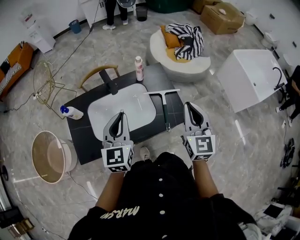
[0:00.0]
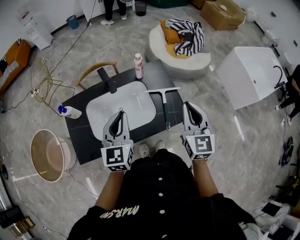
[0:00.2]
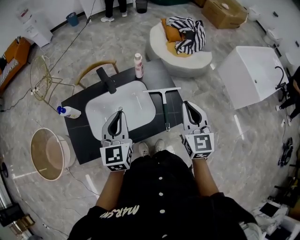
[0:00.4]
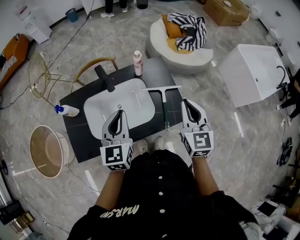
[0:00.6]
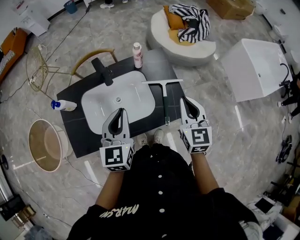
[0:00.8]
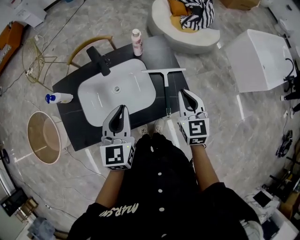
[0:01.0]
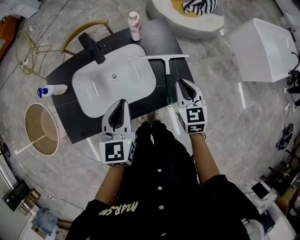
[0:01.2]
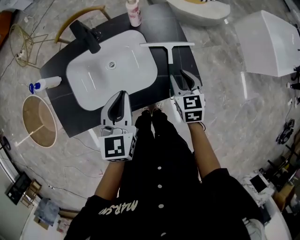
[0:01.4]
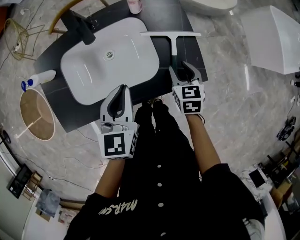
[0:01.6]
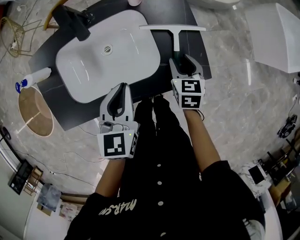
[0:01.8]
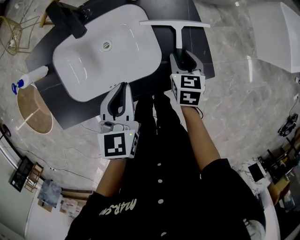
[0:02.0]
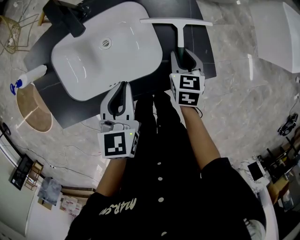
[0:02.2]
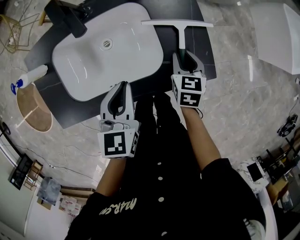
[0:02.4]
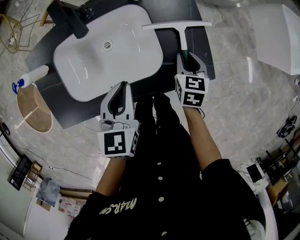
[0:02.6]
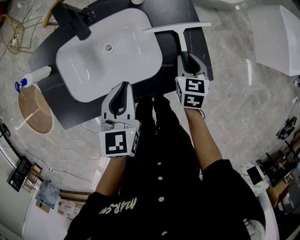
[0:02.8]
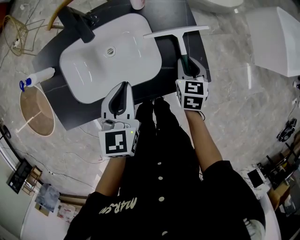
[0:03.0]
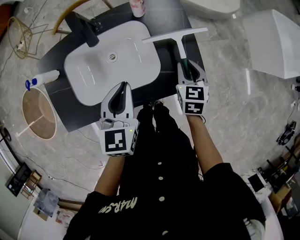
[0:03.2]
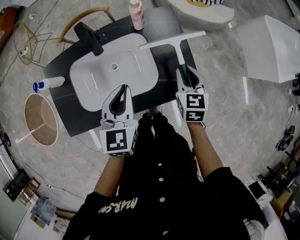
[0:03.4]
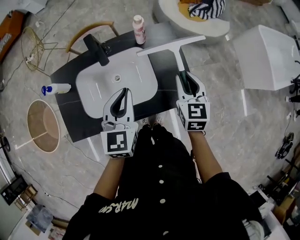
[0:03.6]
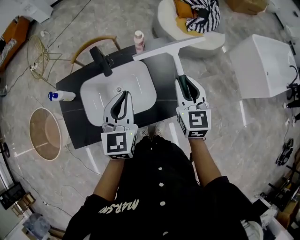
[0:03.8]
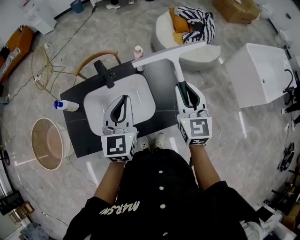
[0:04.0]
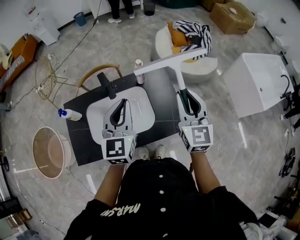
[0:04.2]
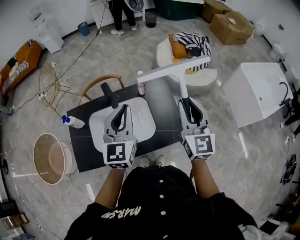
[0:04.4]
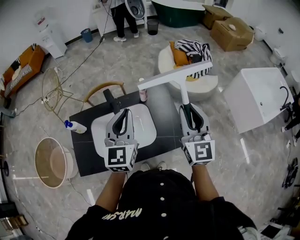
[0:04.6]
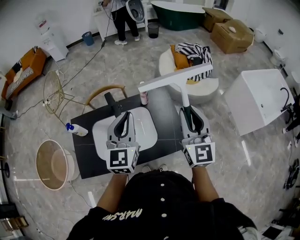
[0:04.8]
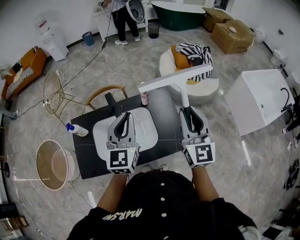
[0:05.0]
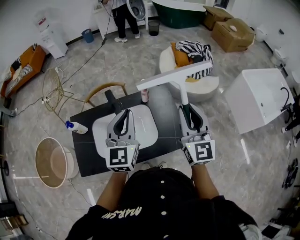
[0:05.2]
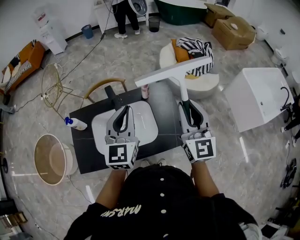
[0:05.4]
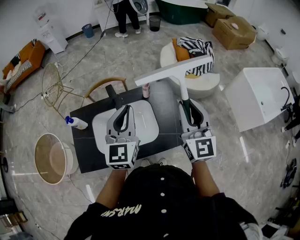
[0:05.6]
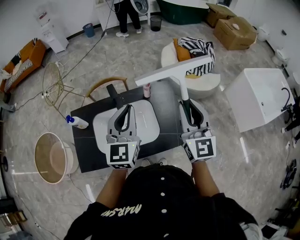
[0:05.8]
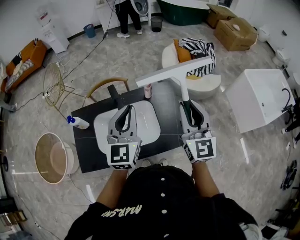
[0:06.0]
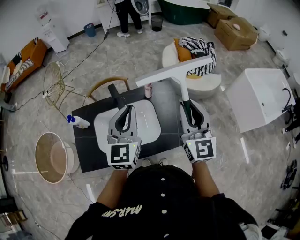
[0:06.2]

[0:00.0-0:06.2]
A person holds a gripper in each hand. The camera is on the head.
0:00.0 to 0:01.6: The right gripper shifts about 35 cm downward, points its fingers roughly 40 degrees further downward, and opens up. The left gripper shifts some 15 cm downward.
0:01.6 to 0:03.2: The grippers make only small movements.
0:03.2 to 0:04.6: The left gripper goes approximately 25 cm upward, and changes its angle by about 30 degrees. The right gripper heads upward, covering roughly 35 cm, and angles its fingers upward, by approximately 50 degrees.
0:04.6 to 0:06.2: The grippers make only small movements.

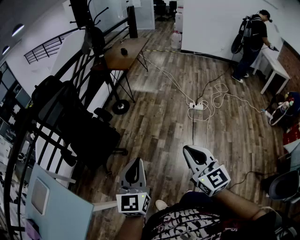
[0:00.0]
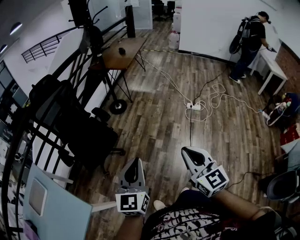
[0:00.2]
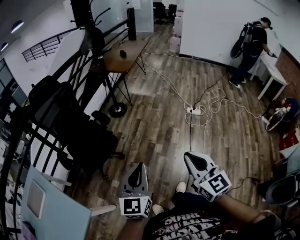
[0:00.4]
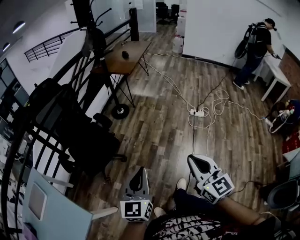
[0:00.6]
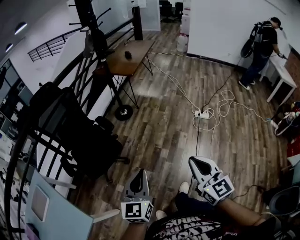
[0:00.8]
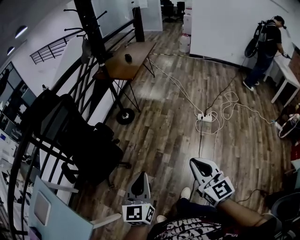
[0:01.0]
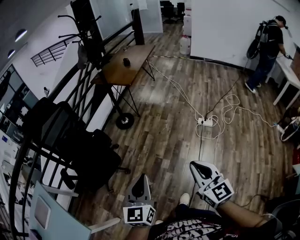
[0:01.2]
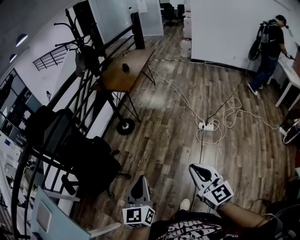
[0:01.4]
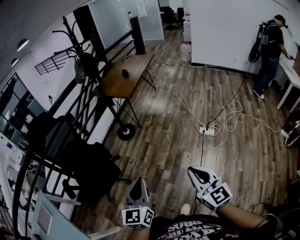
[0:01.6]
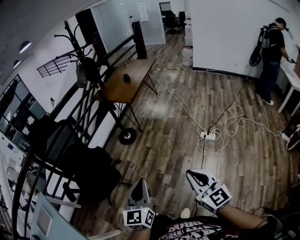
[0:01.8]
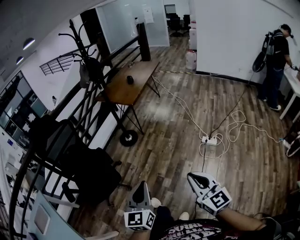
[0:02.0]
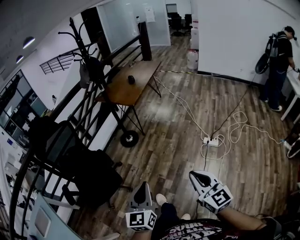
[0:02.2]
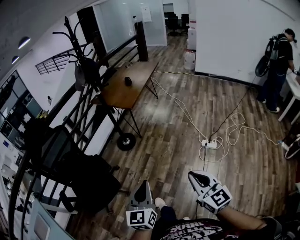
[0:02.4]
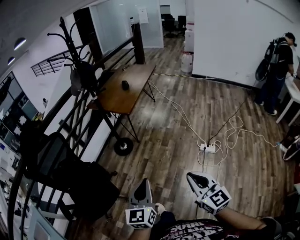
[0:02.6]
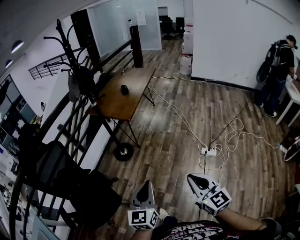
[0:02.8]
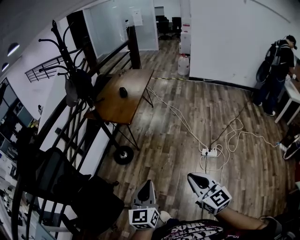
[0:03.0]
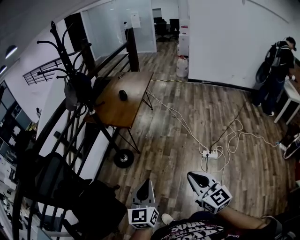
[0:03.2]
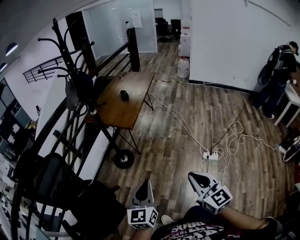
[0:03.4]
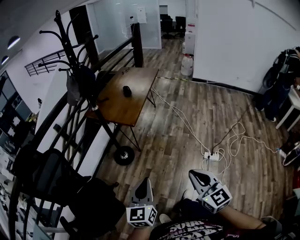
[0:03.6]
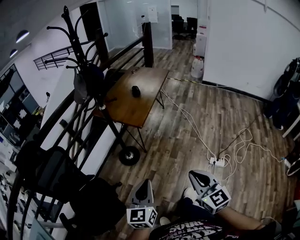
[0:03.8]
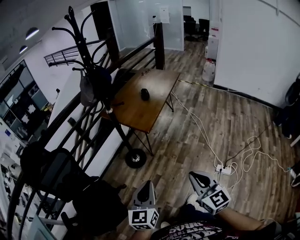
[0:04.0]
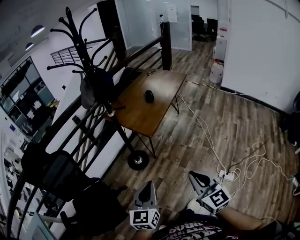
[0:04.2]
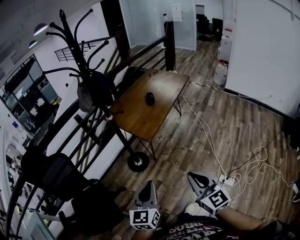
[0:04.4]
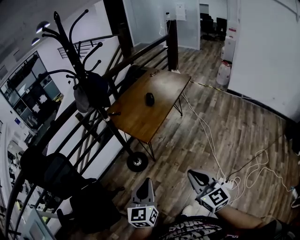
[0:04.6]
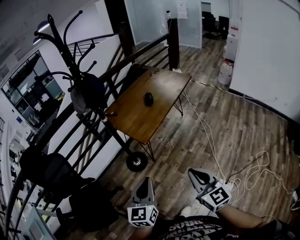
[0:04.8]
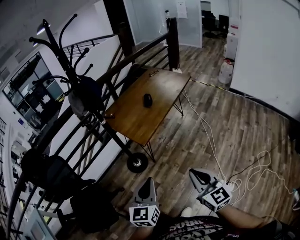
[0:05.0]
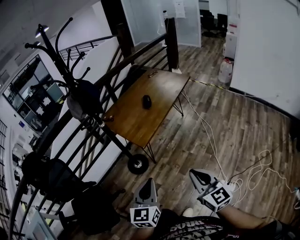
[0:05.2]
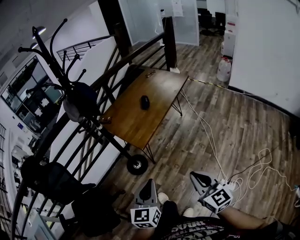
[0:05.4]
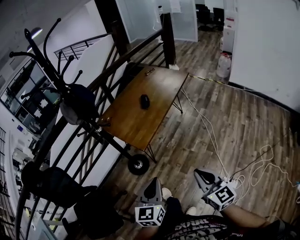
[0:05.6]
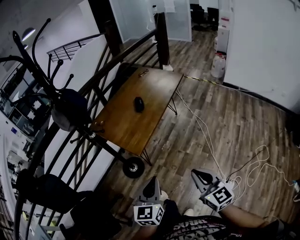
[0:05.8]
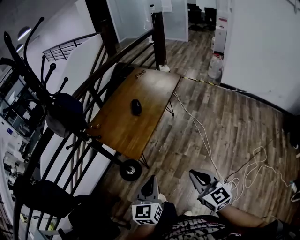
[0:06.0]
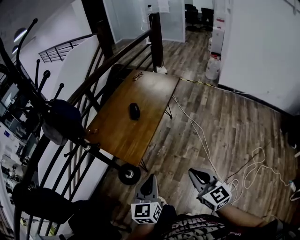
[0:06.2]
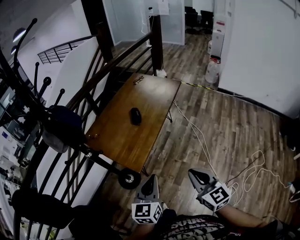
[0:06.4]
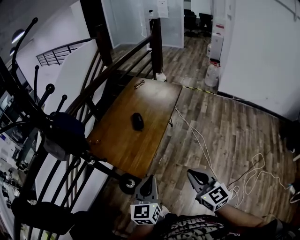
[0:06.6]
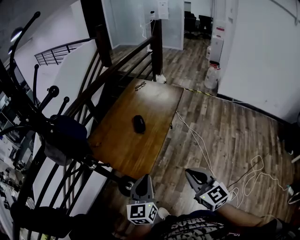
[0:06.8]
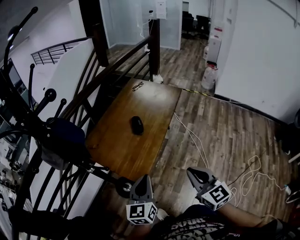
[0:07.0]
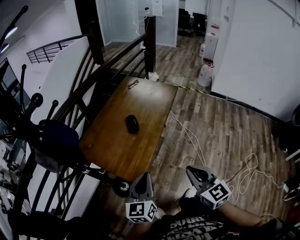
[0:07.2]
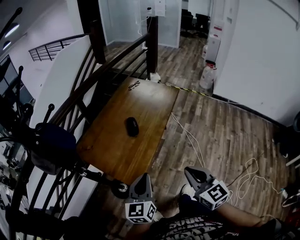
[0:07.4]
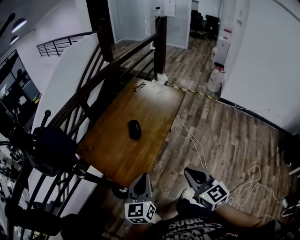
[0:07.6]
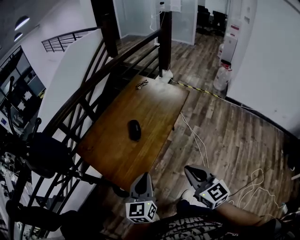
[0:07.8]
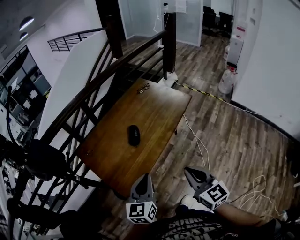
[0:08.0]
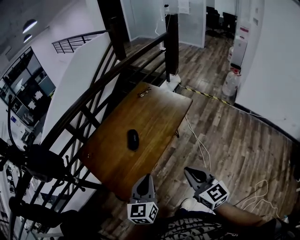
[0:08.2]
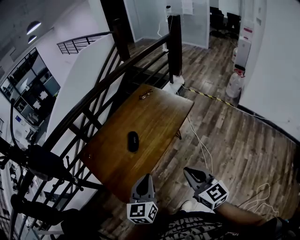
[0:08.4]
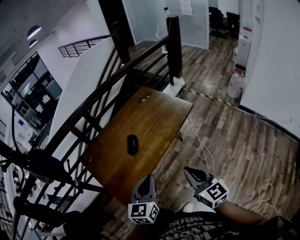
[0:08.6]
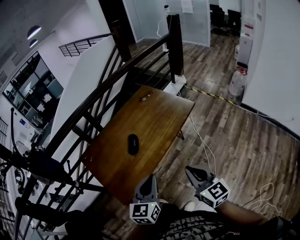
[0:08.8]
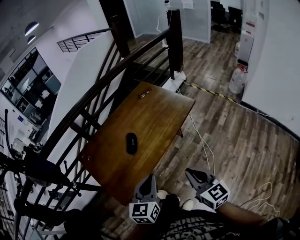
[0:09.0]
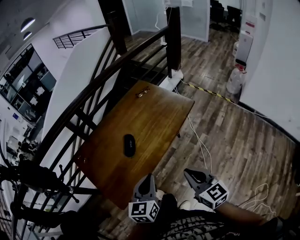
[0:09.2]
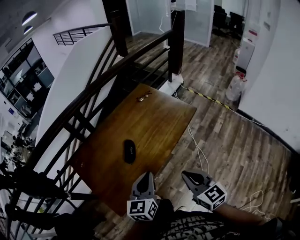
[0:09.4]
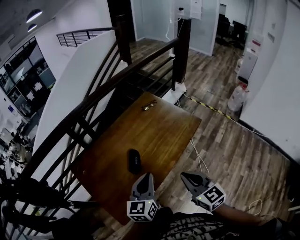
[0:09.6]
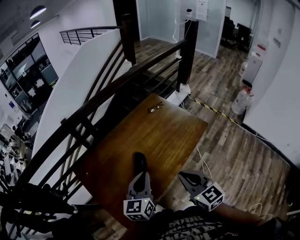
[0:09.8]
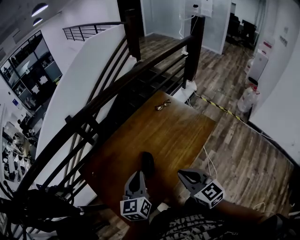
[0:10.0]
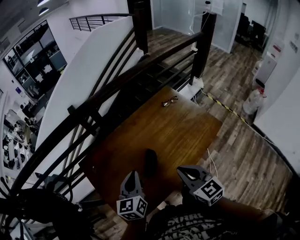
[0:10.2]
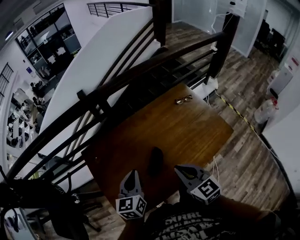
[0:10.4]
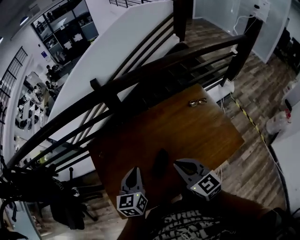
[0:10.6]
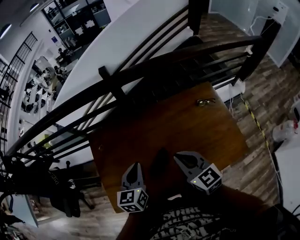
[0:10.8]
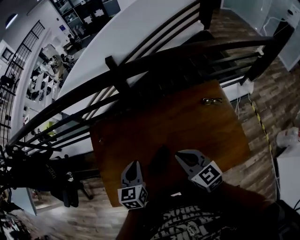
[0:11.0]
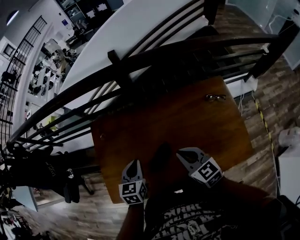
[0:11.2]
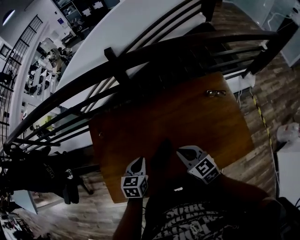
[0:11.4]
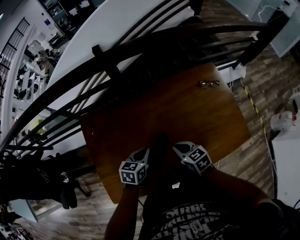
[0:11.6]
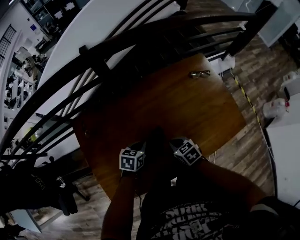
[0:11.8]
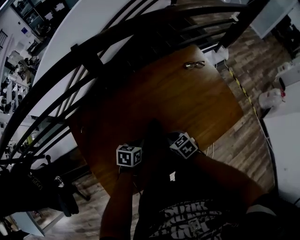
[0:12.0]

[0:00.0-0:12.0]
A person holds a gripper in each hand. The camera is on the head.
0:00.0 to 0:01.6: Both grippers travel together forward and to the right, some 30 cm.
0:01.6 to 0:03.0: The grippers both shift forward by some 30 cm.
0:03.0 to 0:04.4: The two grippers go about 25 cm forward.
0:04.4 to 0:06.0: The two grippers go some 25 cm forward and to the right.
0:06.0 to 0:07.6: Both grippers travel together forward, about 25 cm.
0:07.6 to 0:09.0: The grippers both shift to the right and forward by roughly 20 cm.
0:09.0 to 0:10.4: Both grippers travel together forward and to the left, approximately 35 cm. The right gripper changes its angle by some 30 degrees, while the left gripper rotates some 30 degrees.
0:10.4 to 0:12.0: The two grippers go roughly 25 cm downward. The left gripper swivels approximately 40 degrees, while the right gripper tilts its fingers about 30 degrees downward.

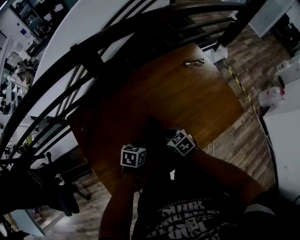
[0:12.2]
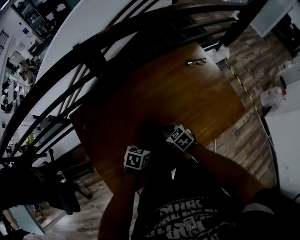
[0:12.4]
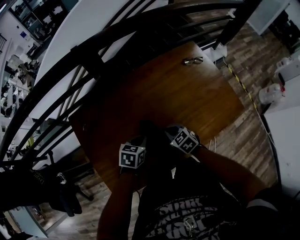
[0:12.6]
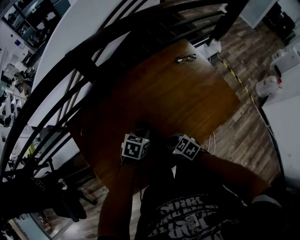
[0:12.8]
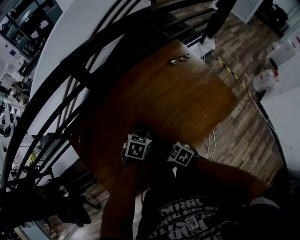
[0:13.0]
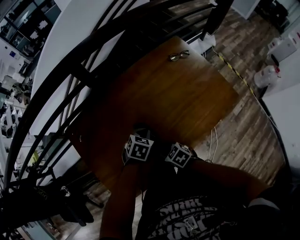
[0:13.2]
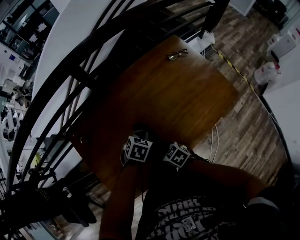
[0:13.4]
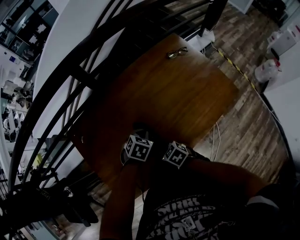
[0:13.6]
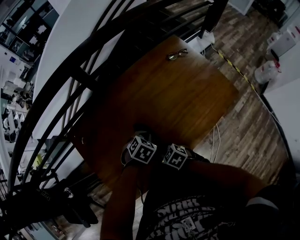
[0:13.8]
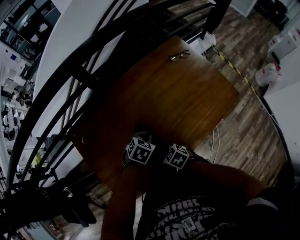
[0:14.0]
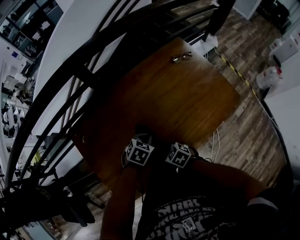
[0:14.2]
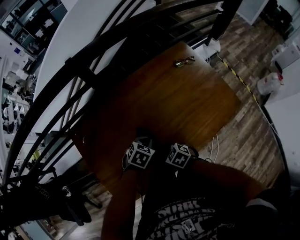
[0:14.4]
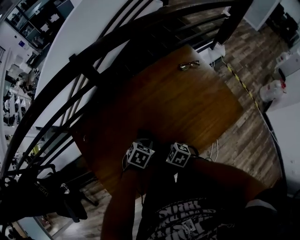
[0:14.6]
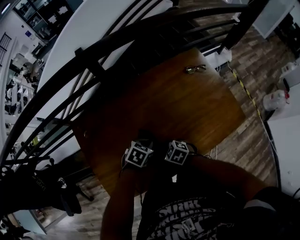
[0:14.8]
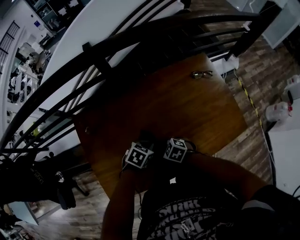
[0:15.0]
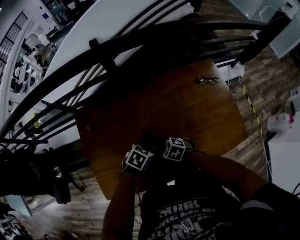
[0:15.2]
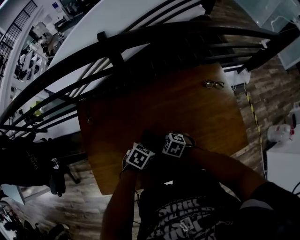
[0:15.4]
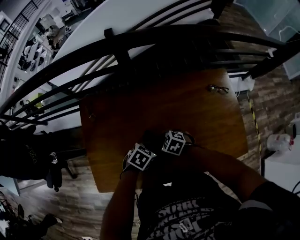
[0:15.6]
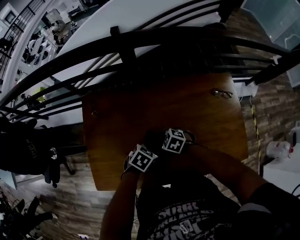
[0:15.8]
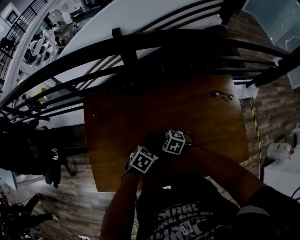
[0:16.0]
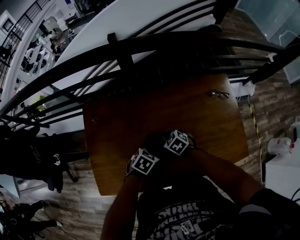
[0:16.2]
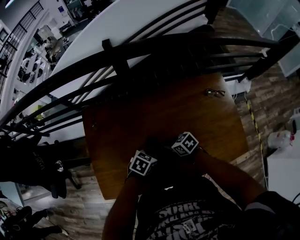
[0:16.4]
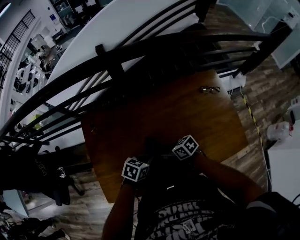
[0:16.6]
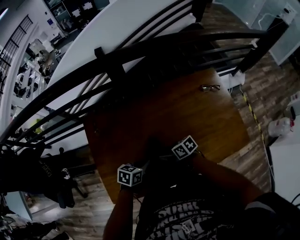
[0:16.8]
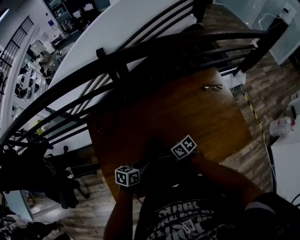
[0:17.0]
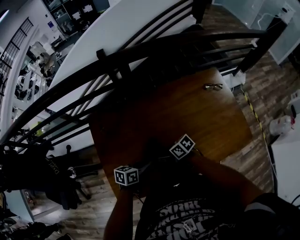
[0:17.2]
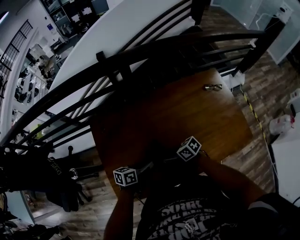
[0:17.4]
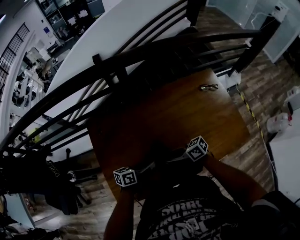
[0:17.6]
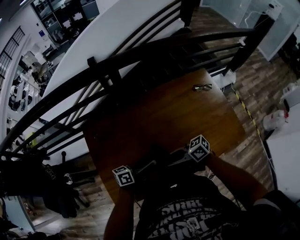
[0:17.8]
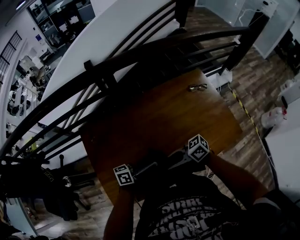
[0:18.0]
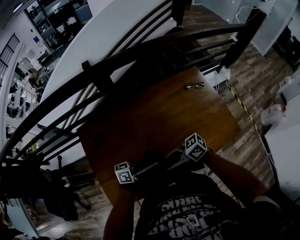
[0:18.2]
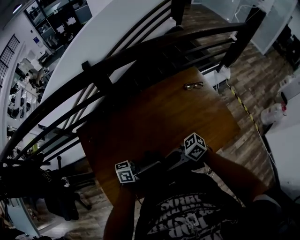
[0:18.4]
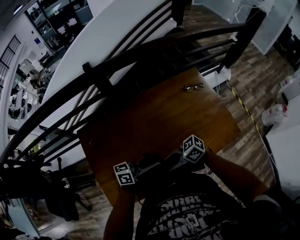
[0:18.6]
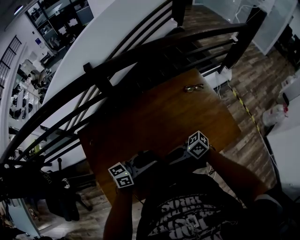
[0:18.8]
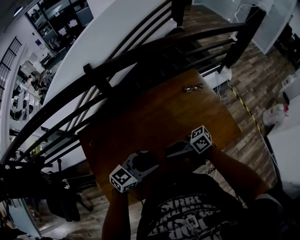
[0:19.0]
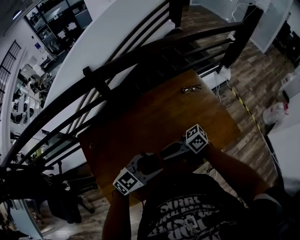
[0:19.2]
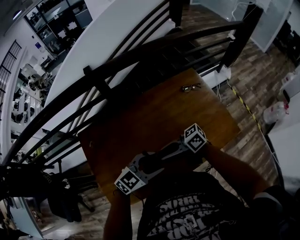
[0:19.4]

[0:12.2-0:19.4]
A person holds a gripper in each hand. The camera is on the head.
0:12.2 to 0:13.6: The right gripper shifts by about 10 cm; the left gripper rotates roughly 30 degrees.
0:13.6 to 0:15.0: The right gripper moves approximately 10 cm, and turns by about 30 degrees.
0:15.0 to 0:16.6: The right gripper changes its angle by approximately 40 degrees, and opens up.
0:16.6 to 0:18.0: The grippers both shift upward by some 10 cm. The left gripper tilts its fingers roughly 60 degrees upward, and opens. Meanwhile the right gripper rotates about 30 degrees.
0:18.0 to 0:19.4: The left gripper shifts by about 10 cm, and twists approximately 60 degrees clockwise, seen from behind; the right gripper heads upward, covering some 5 cm.
